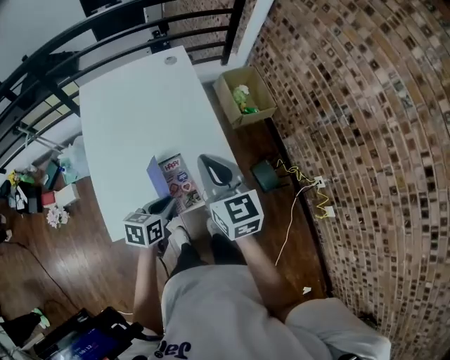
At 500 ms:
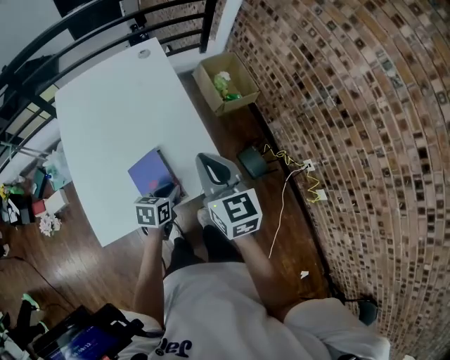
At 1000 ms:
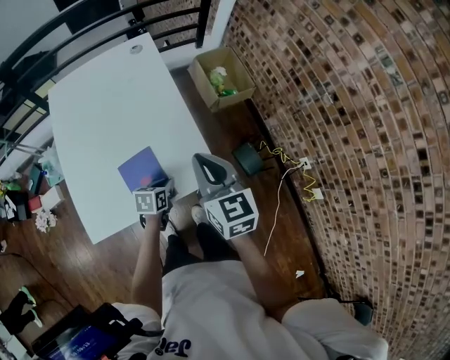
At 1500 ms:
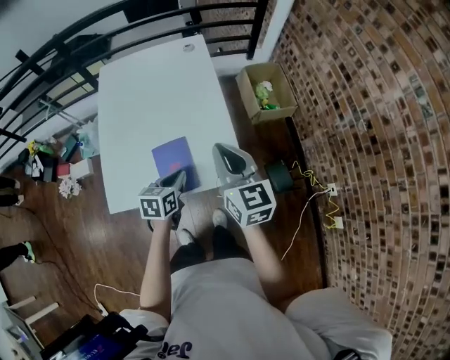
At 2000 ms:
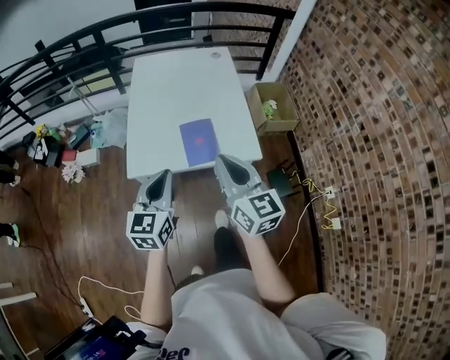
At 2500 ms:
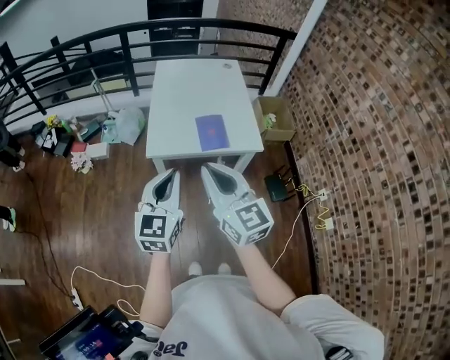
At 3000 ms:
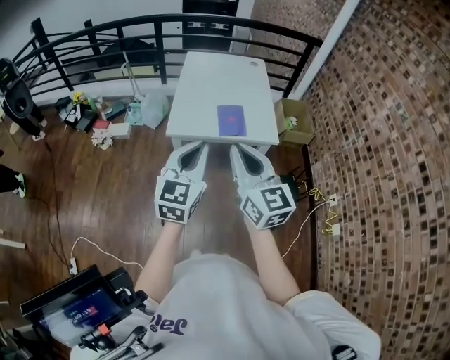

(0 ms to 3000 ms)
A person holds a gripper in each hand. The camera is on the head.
0 ms - 1500 ms: The two grippers go roughly 5 cm to the right. The left gripper goes downward and returns, approximately 10 cm each way.
1500 ms - 3000 ms: The right gripper goes about 40 cm backward and to the left, while the left gripper travels backward, upward and to the left by roughly 50 cm, and angles its fingers upward, by approximately 30 degrees.

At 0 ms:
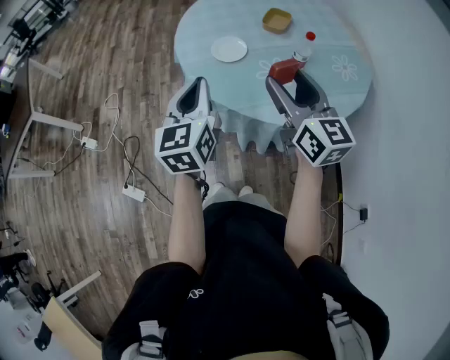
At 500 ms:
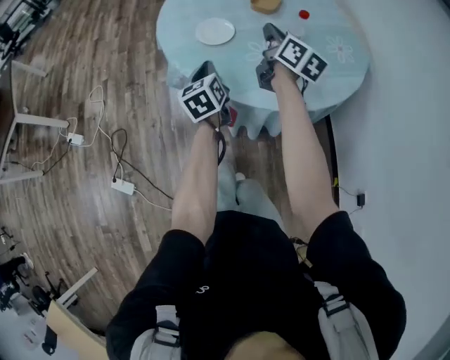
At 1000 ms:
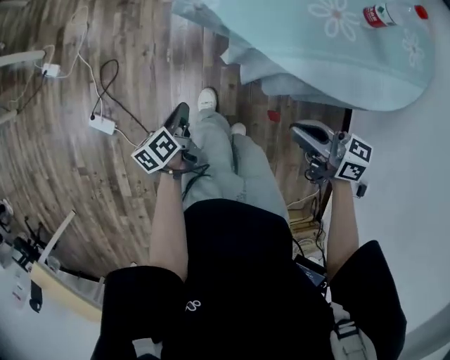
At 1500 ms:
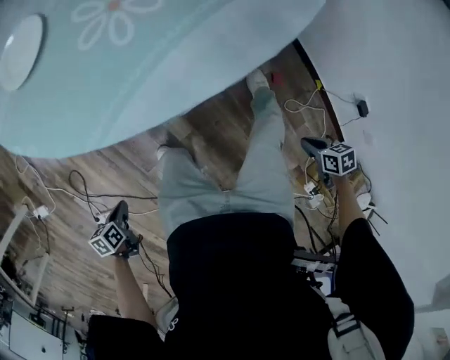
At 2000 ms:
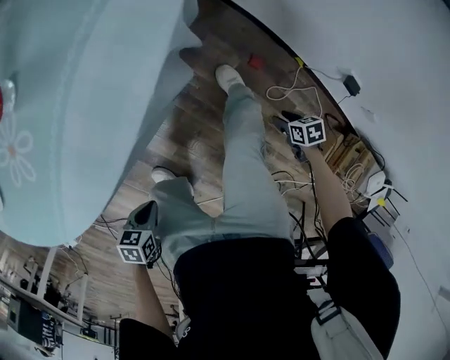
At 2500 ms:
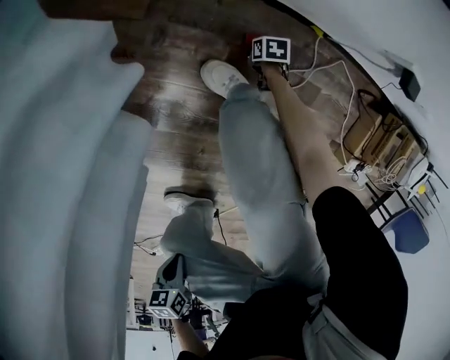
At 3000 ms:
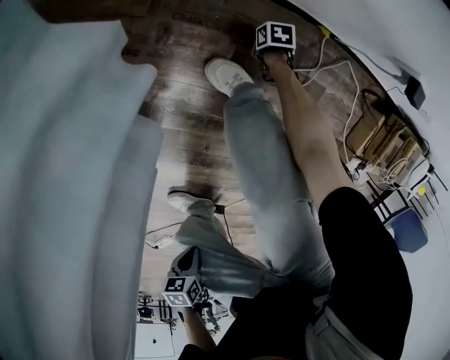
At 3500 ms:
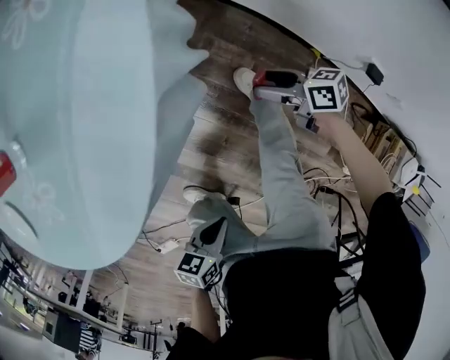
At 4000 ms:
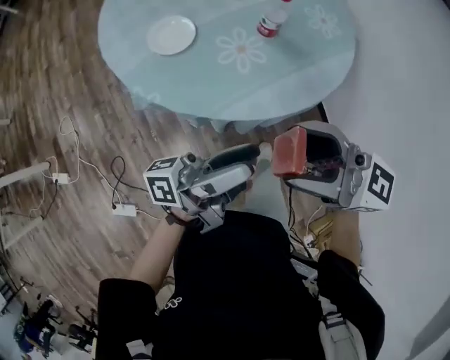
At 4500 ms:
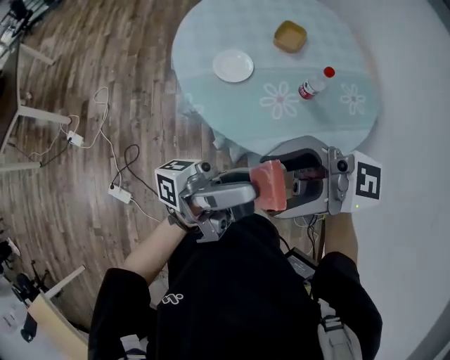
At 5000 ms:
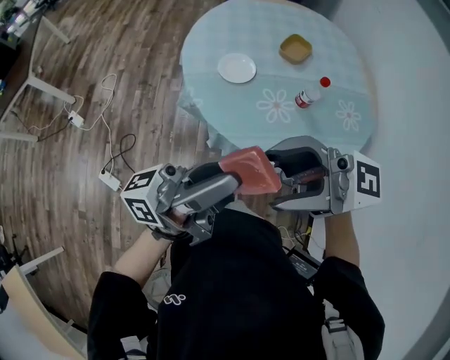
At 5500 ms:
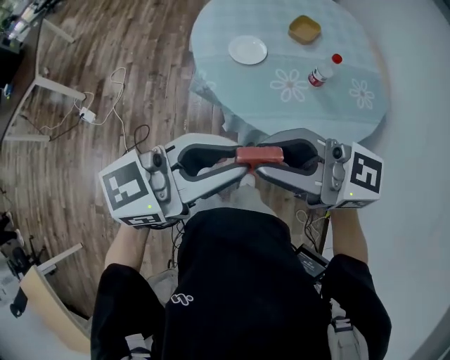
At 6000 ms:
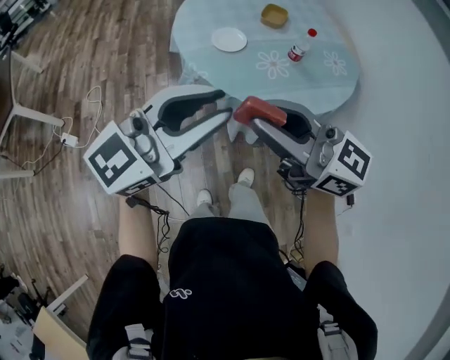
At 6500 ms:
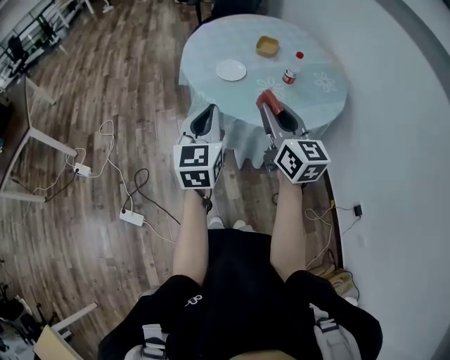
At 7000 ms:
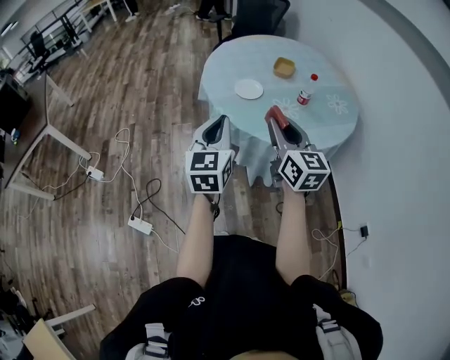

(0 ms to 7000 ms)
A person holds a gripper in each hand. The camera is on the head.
0 ms - 2000 ms: The two grippers go about 70 cm downward. The right gripper tips its fingers downward by some 70 degrees, and closes, then reopens. The left gripper points its fingers about 60 degrees further downward.
2000 ms - 3500 ms: The left gripper travels downward and back again, approximately 15 cm each way. Meanwhile the right gripper travels downward and back again, some 40 cm each way, and points its fingers approximately 40 degrees further upward.
3500 ms - 5000 ms: The grippers both shift upward by roughly 70 cm. The left gripper tilts its fingers some 80 degrees upward, and opens, then closes once more. The right gripper tips its fingers upward by roughly 40 degrees.
5000 ms - 7000 ms: The right gripper shifts by approximately 10 cm, changes its angle by roughly 80 degrees, and closes, while the left gripper moves about 20 cm, and angles its fingers downward, by about 40 degrees.

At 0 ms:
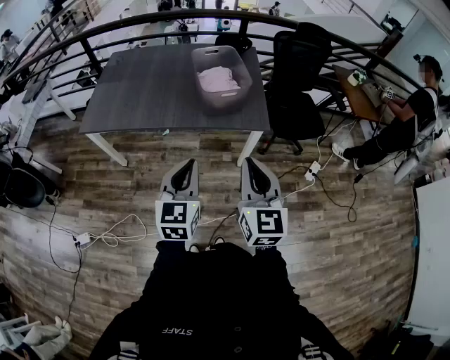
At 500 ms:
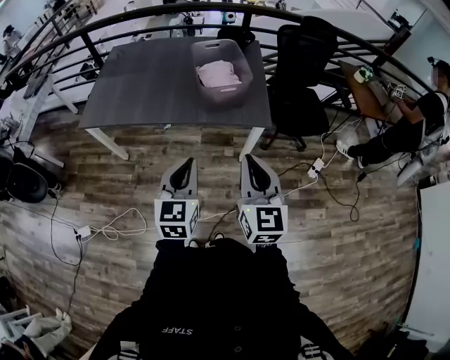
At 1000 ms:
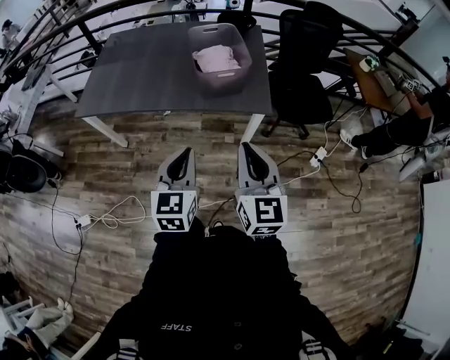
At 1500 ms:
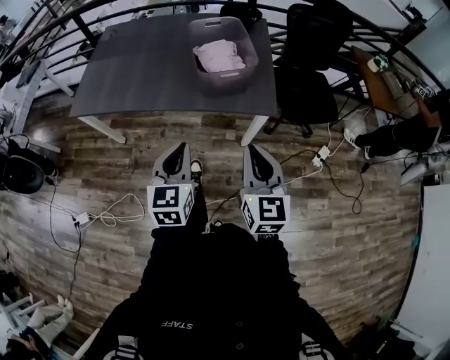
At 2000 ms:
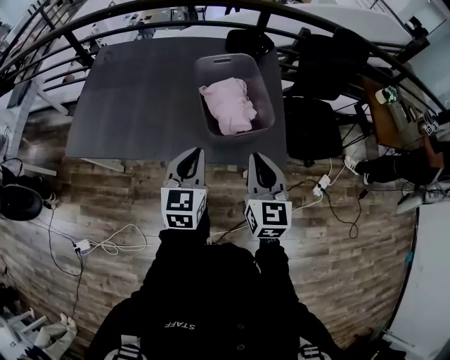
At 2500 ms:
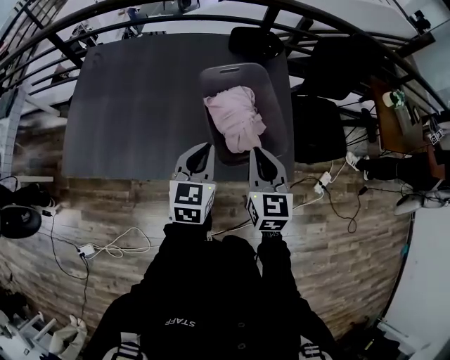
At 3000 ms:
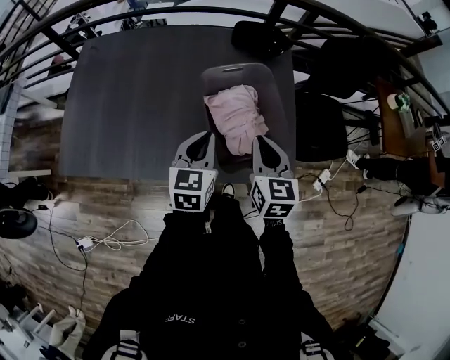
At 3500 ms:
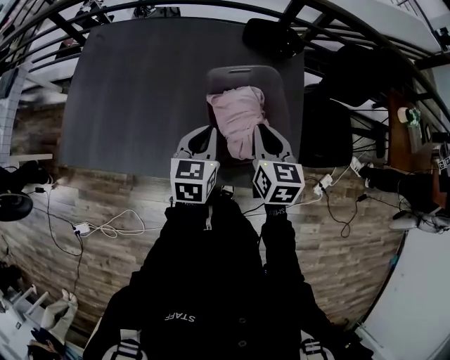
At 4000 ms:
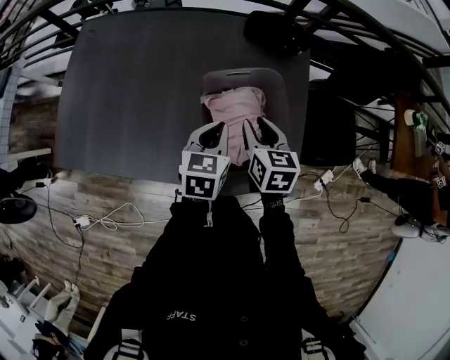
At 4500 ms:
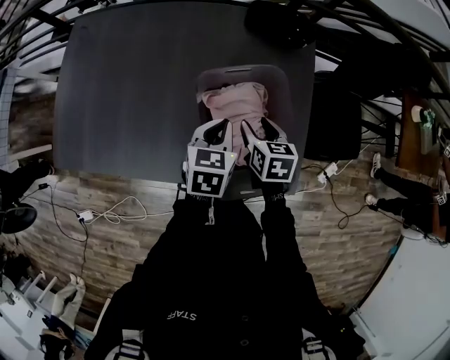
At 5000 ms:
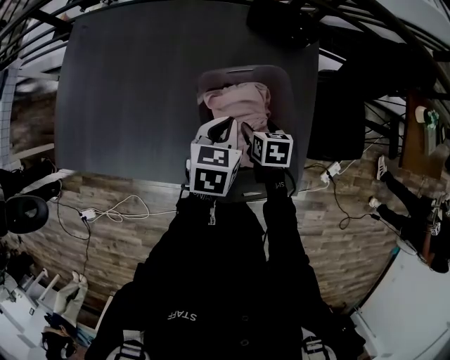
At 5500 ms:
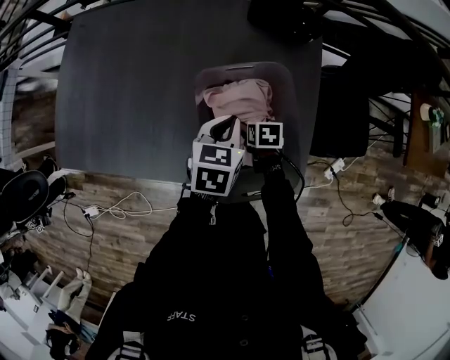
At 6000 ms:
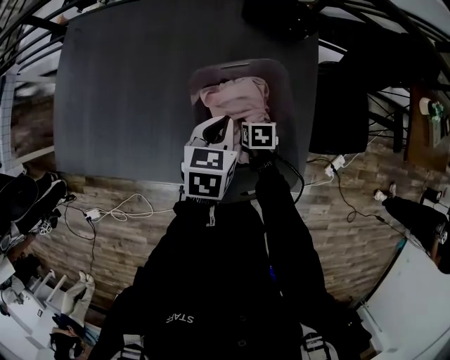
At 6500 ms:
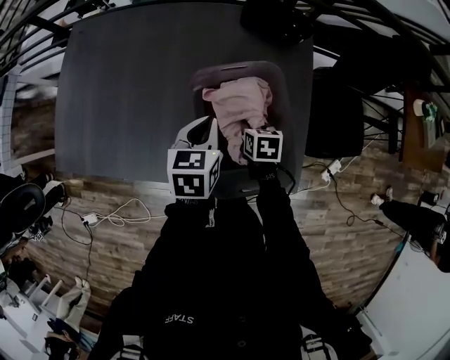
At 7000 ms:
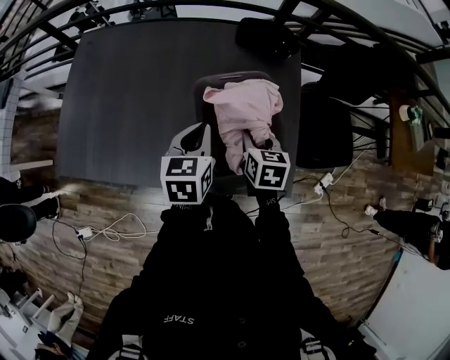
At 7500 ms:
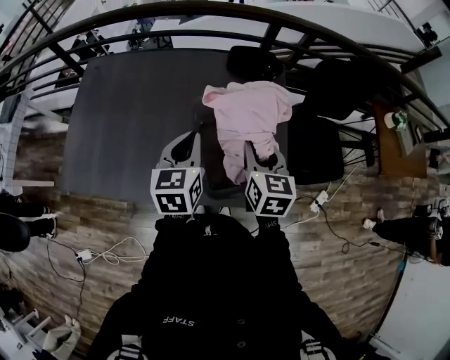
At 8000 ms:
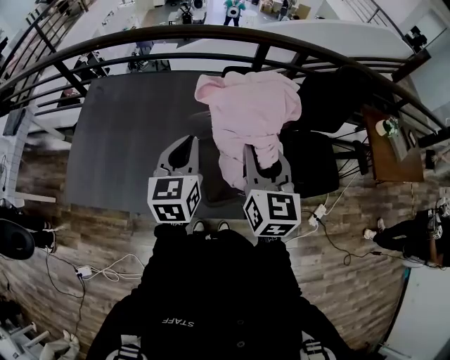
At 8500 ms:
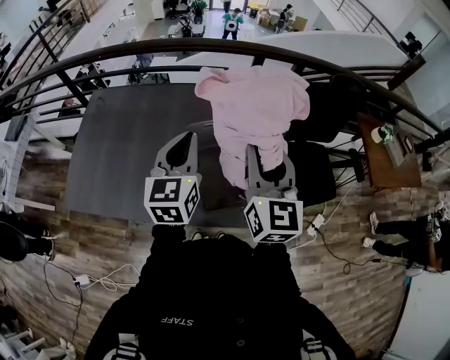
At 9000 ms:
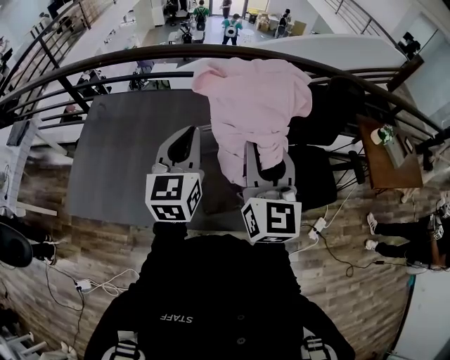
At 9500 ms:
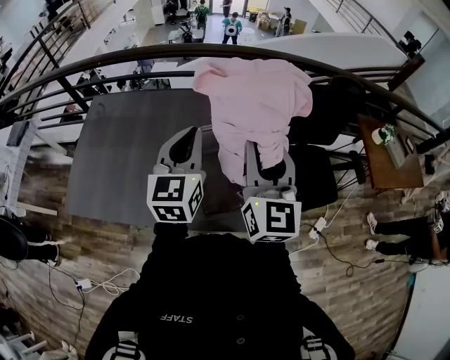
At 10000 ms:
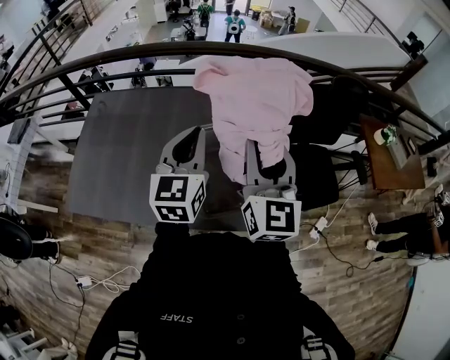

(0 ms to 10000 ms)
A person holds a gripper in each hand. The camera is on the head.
0 ms - 2000 ms: Both grippers travel together forward, about 30 cm.
2000 ms - 4000 ms: The left gripper is displaced forward by approximately 25 cm, and turns by some 20 degrees. The right gripper moves forward and downward, about 35 cm, and changes its angle by about 30 degrees.
4000 ms - 6000 ms: The right gripper shifts about 25 cm downward, turns by approximately 30 degrees, and opens, then closes again.
6000 ms - 8000 ms: The right gripper moves upward, about 50 cm, and angles its fingers upward, by some 60 degrees; the left gripper is displaced upward by approximately 20 cm, and rotates some 30 degrees.
8000 ms - 10000 ms: The grippers both shift upward by some 5 cm.

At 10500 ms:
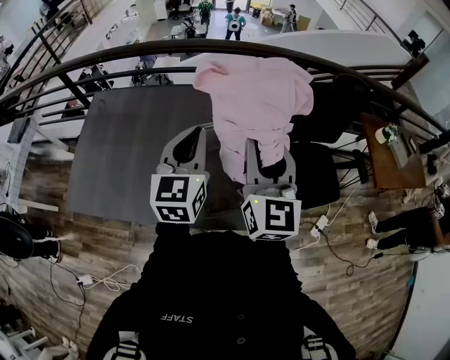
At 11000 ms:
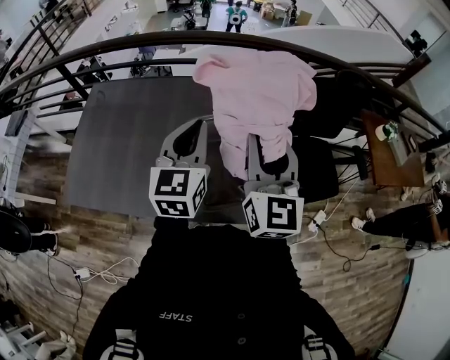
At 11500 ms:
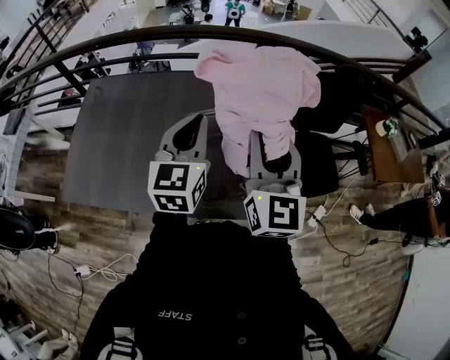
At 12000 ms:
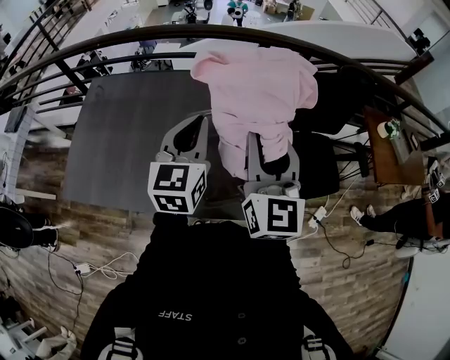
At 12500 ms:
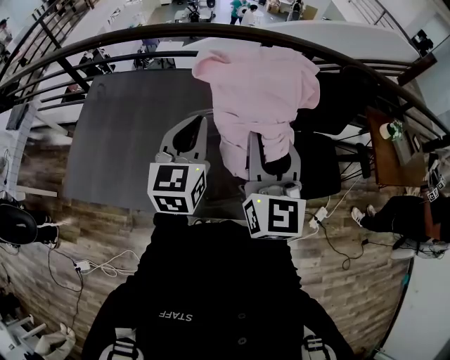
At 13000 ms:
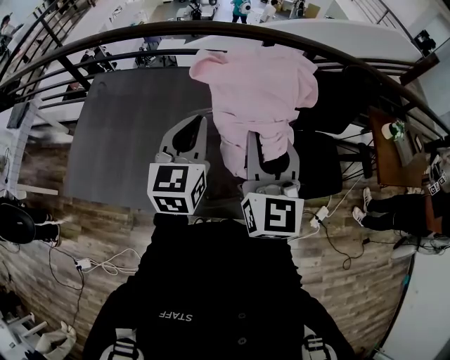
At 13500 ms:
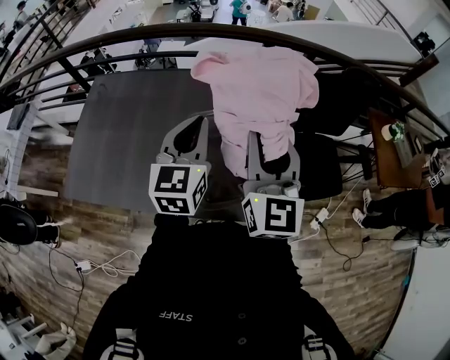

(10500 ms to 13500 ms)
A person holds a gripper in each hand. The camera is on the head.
10500 ms - 12000 ms: The grippers move only a little.
12000 ms - 13500 ms: Both grippers stay put.

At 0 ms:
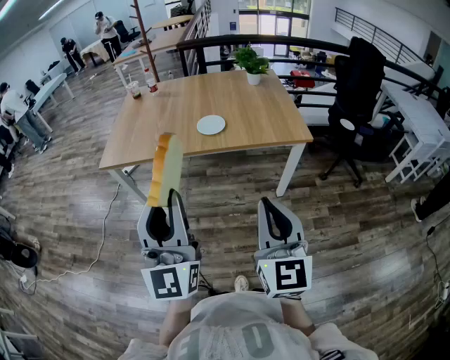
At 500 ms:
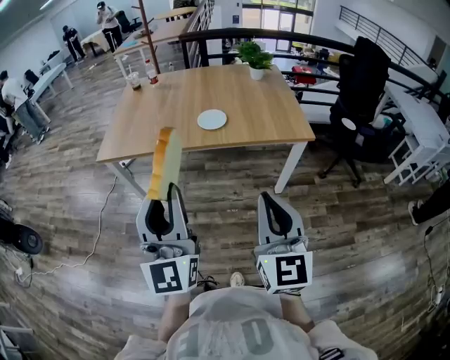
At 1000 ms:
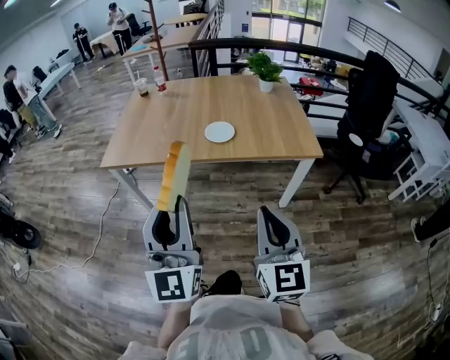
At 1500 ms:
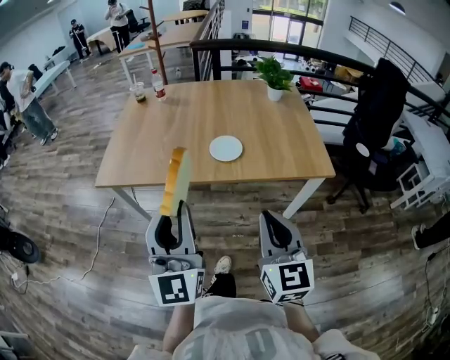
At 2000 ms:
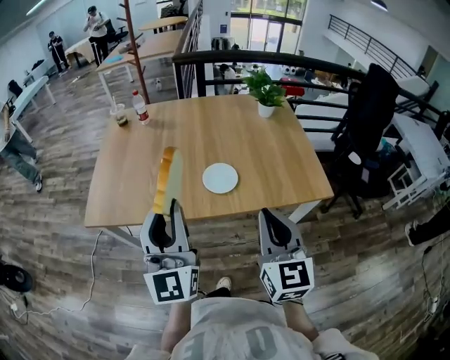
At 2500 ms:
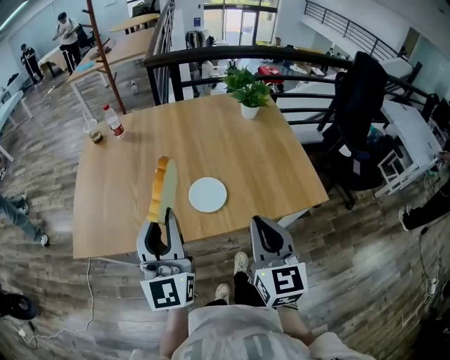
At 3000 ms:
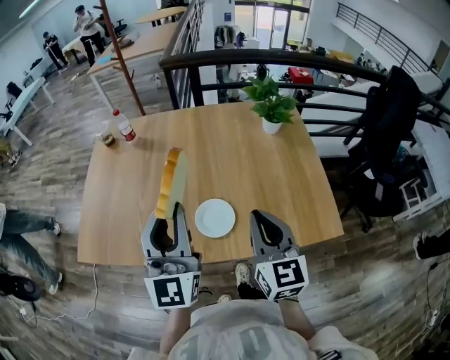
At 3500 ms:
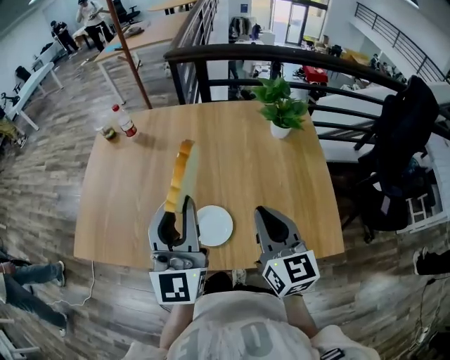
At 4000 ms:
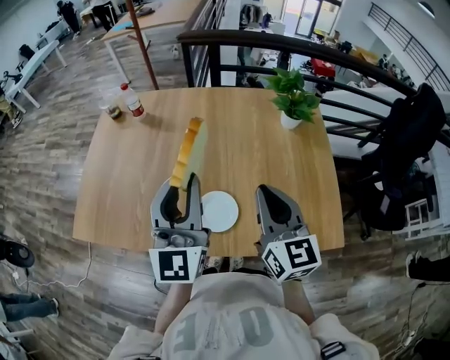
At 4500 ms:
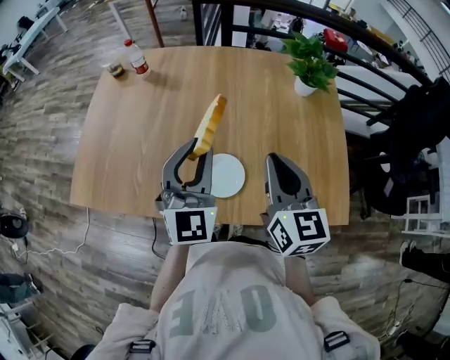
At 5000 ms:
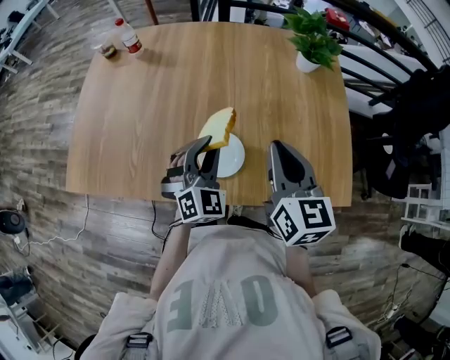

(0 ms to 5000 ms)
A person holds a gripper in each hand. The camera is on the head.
0 ms - 2500 ms: The two grippers go roughly 40 cm forward.
2500 ms - 5000 ms: The right gripper goes roughly 20 cm forward. Meanwhile the left gripper shifts some 30 cm downward, forward and to the right, and tilts its fingers some 40 degrees downward.
